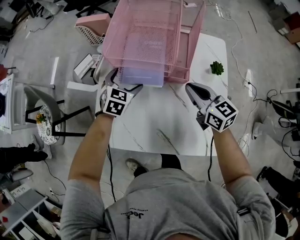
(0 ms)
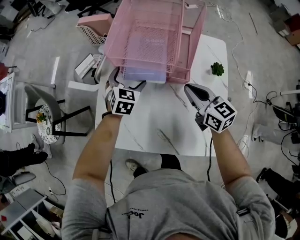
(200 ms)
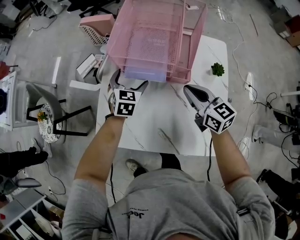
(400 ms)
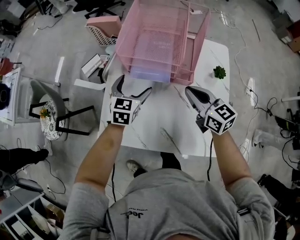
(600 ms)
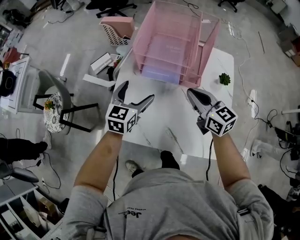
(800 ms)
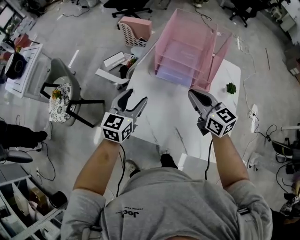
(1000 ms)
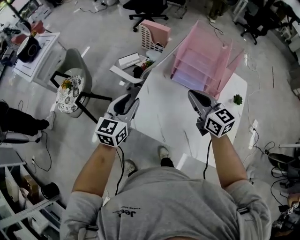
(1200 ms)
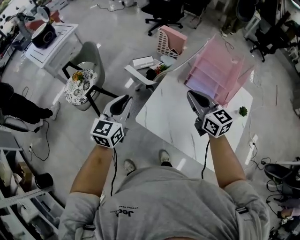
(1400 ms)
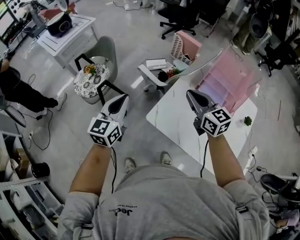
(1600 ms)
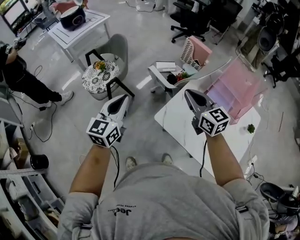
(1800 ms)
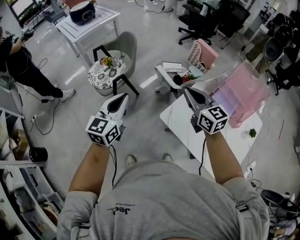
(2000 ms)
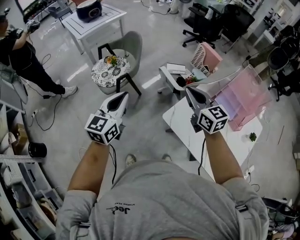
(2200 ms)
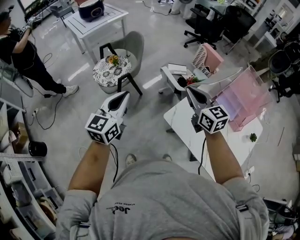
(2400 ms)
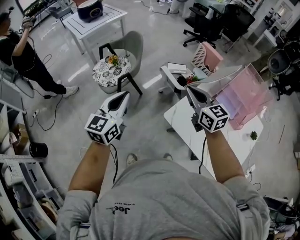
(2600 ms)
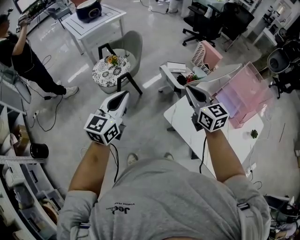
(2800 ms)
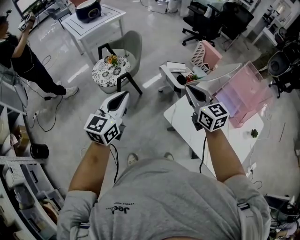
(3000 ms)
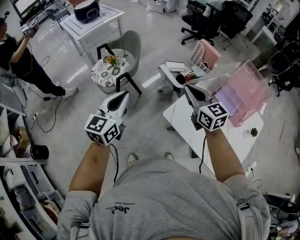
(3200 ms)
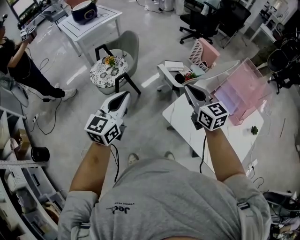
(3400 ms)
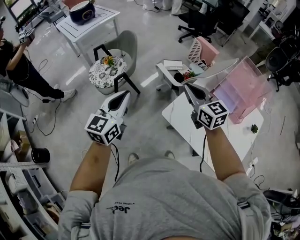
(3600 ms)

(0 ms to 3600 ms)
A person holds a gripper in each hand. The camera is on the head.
0 ms - 1800 ms: Both grippers are carried approximately 50 cm. The right gripper turns by some 30 degrees. Meanwhile the left gripper tips its fingers upward by about 30 degrees, and closes.
1800 ms - 3600 ms: The left gripper moves approximately 5 cm, while the right gripper goes some 5 cm to the left.

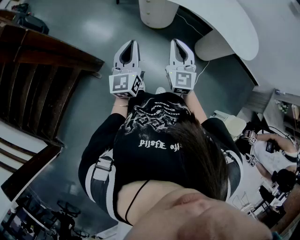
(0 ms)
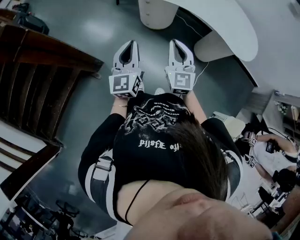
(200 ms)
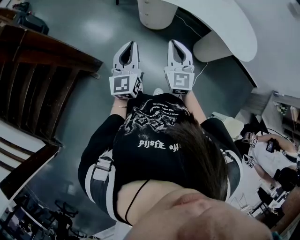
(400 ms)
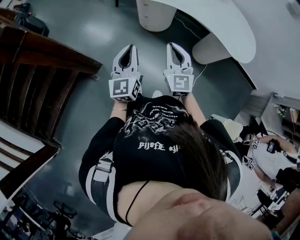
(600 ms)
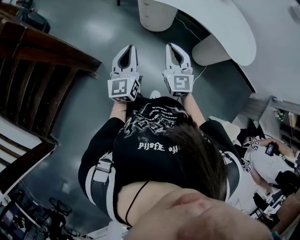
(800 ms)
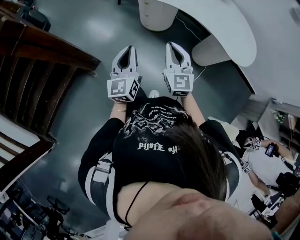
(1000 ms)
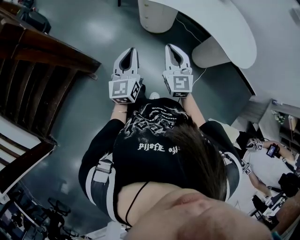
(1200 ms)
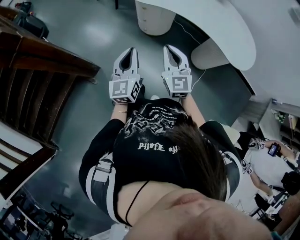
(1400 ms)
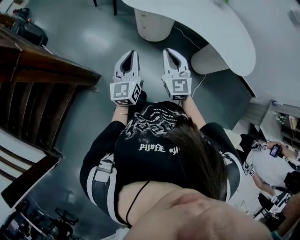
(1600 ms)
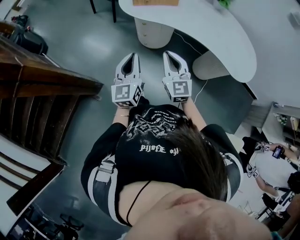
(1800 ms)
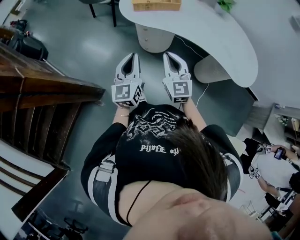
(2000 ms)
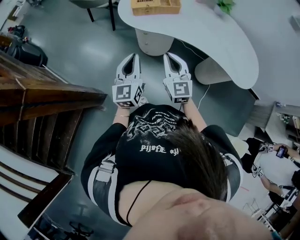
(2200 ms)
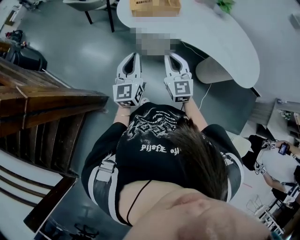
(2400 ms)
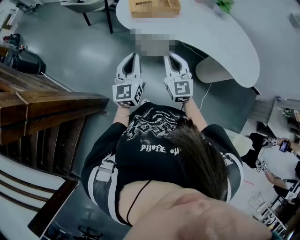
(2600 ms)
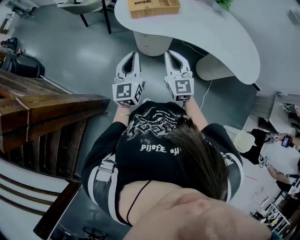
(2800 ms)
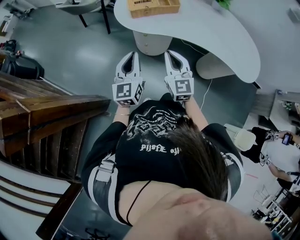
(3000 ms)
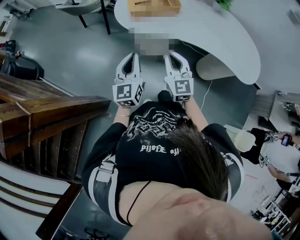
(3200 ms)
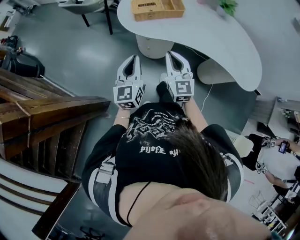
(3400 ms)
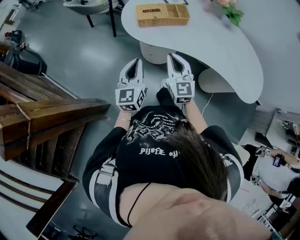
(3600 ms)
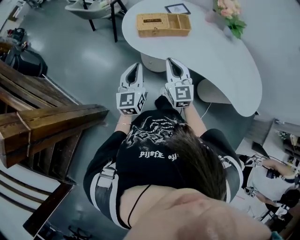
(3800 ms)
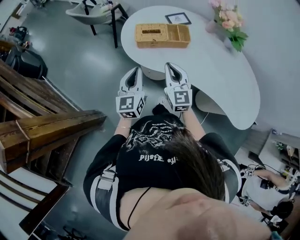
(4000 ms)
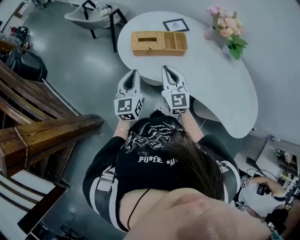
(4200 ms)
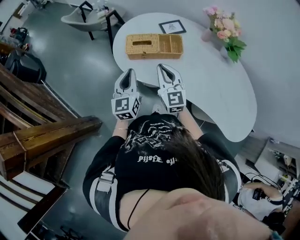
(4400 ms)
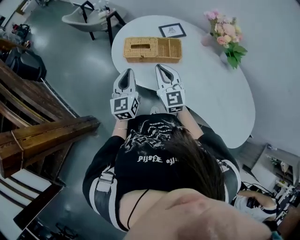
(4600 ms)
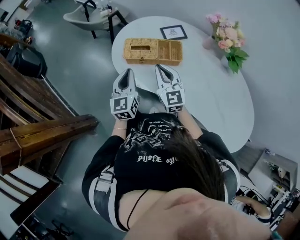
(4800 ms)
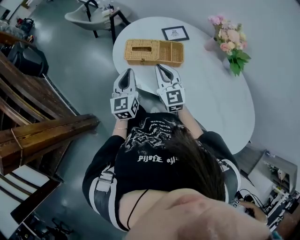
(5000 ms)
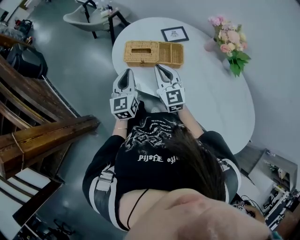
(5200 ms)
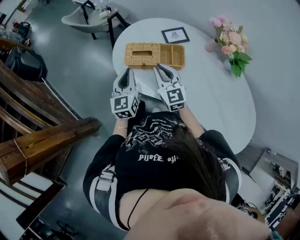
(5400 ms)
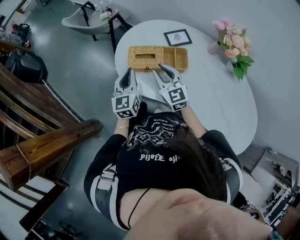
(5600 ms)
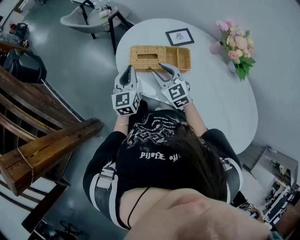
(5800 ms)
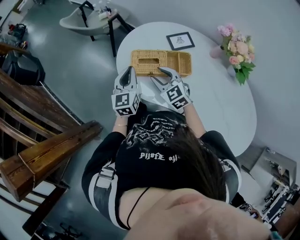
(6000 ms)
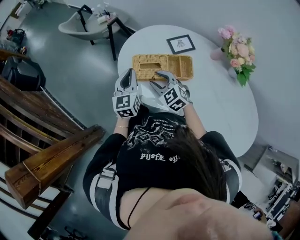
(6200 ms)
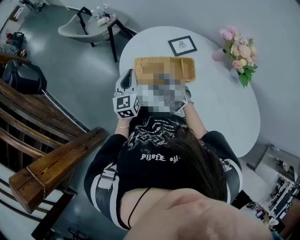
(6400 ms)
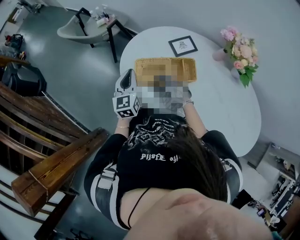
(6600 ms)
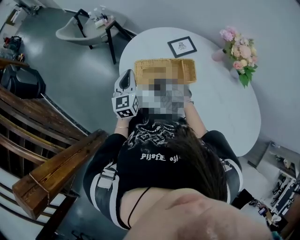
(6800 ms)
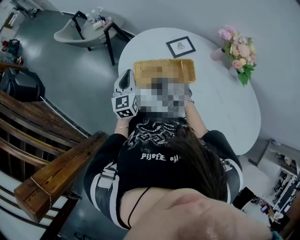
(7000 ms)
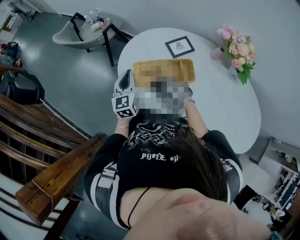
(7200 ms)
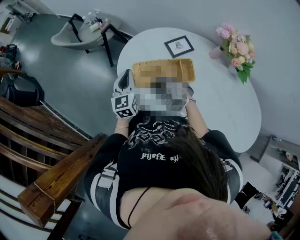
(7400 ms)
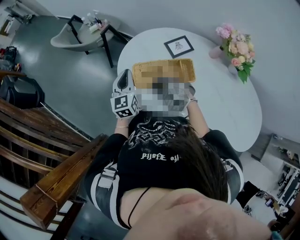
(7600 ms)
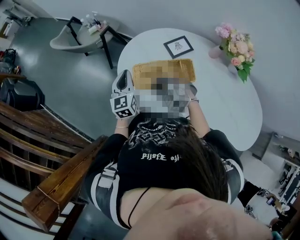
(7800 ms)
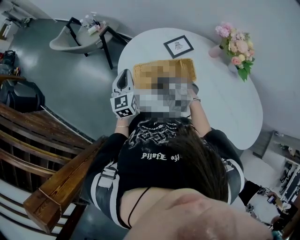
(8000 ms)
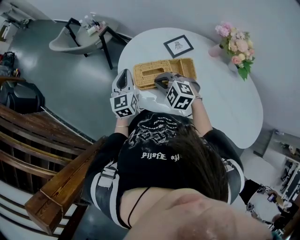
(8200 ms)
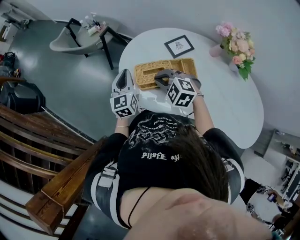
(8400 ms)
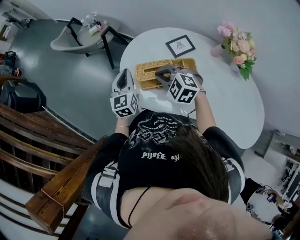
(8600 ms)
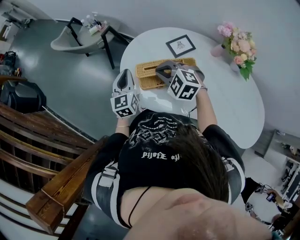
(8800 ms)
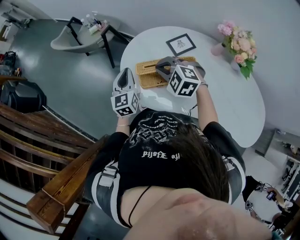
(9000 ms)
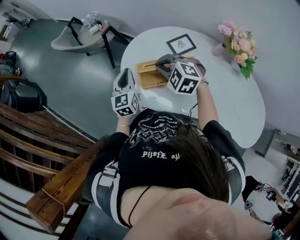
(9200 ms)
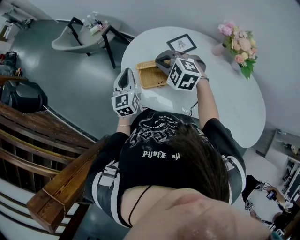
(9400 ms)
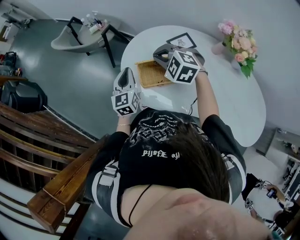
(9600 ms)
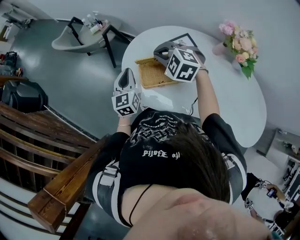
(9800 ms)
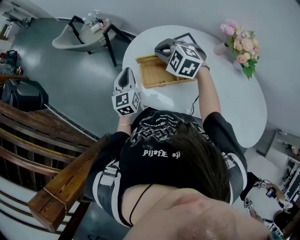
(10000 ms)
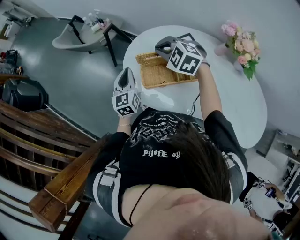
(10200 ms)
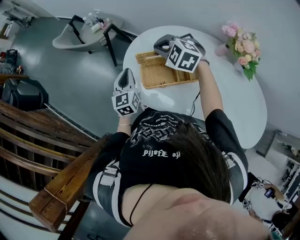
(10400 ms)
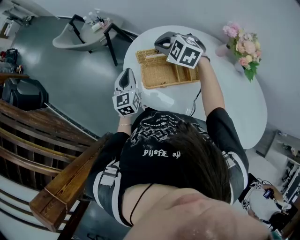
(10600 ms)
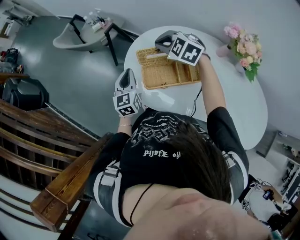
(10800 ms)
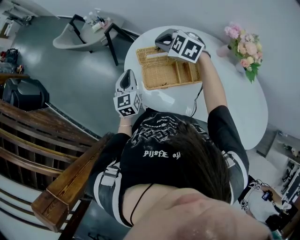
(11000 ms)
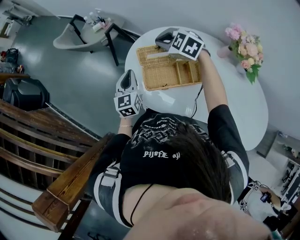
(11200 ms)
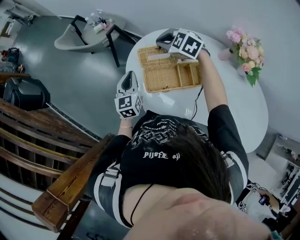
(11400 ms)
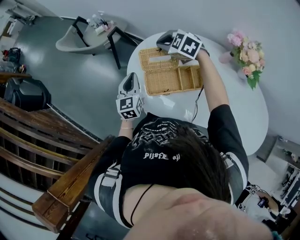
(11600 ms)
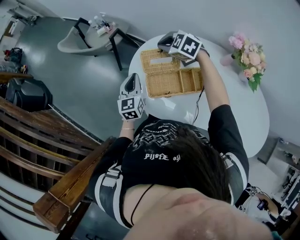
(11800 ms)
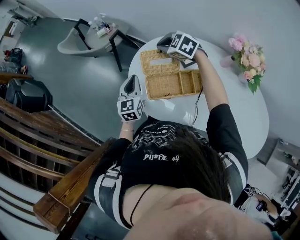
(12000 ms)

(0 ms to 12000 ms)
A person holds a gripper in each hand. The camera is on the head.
0 ms - 1600 ms: The grippers both shift forward by some 10 cm.
1600 ms - 3000 ms: Both grippers travel together forward and to the left, approximately 20 cm.
3000 ms - 4400 ms: Both grippers move forward, some 25 cm.
4400 ms - 6000 ms: The right gripper moves forward and downward, some 15 cm, changes its angle by some 30 degrees, and opens. Meanwhile the left gripper is displaced forward by about 15 cm.
6000 ms - 7600 ms: The left gripper travels forward by some 10 cm. Meanwhile the right gripper shifts by roughly 5 cm, turns by some 30 degrees, and closes up.
7600 ms - 9000 ms: The right gripper moves upward and forward, roughly 10 cm.
9000 ms - 10400 ms: The right gripper shifts about 10 cm forward.
10400 ms - 12000 ms: The right gripper travels forward by approximately 10 cm.

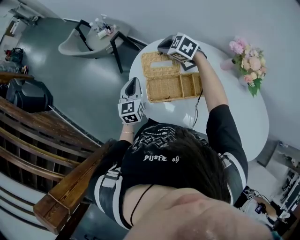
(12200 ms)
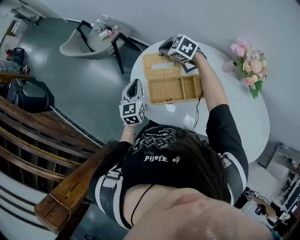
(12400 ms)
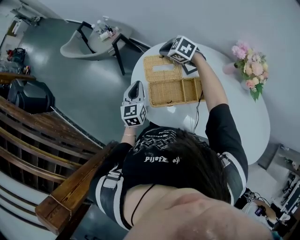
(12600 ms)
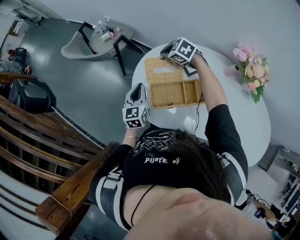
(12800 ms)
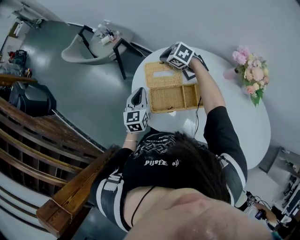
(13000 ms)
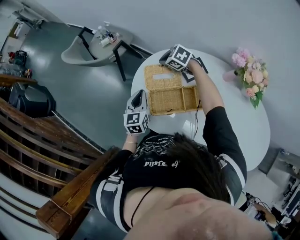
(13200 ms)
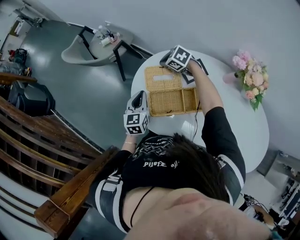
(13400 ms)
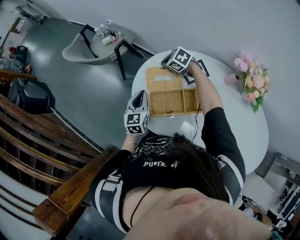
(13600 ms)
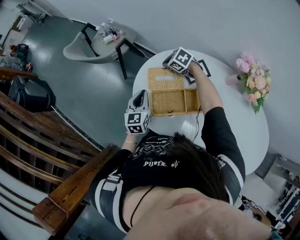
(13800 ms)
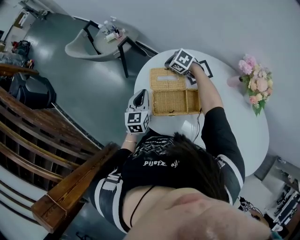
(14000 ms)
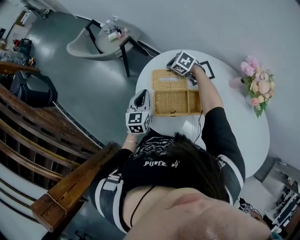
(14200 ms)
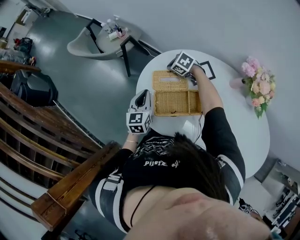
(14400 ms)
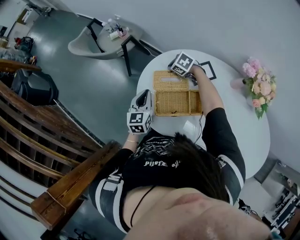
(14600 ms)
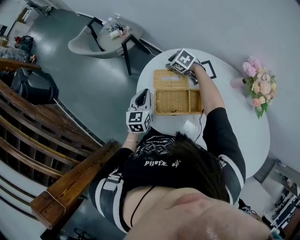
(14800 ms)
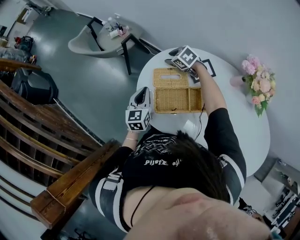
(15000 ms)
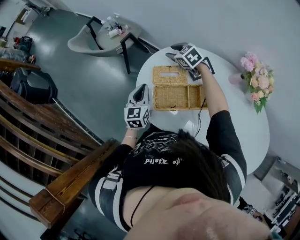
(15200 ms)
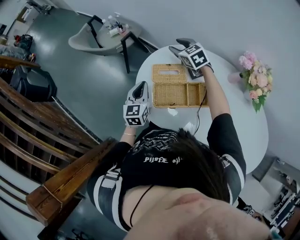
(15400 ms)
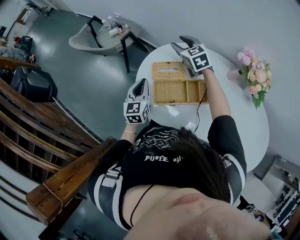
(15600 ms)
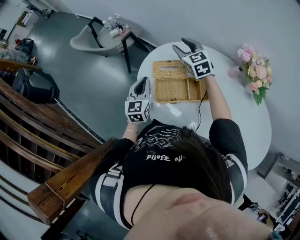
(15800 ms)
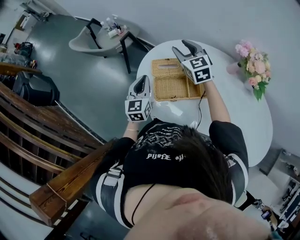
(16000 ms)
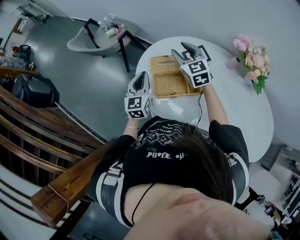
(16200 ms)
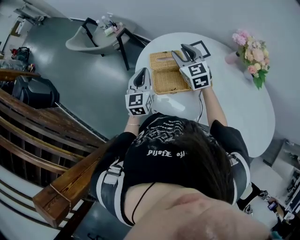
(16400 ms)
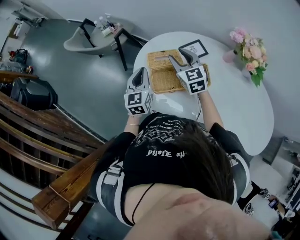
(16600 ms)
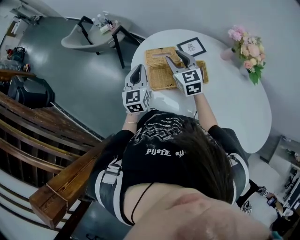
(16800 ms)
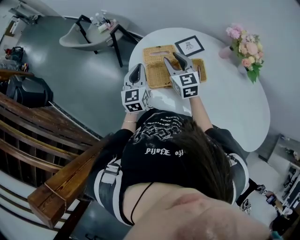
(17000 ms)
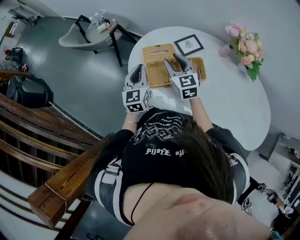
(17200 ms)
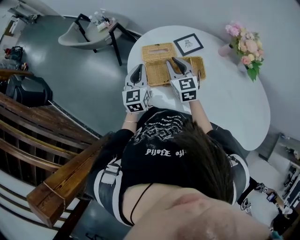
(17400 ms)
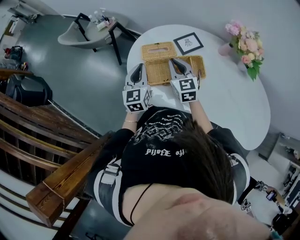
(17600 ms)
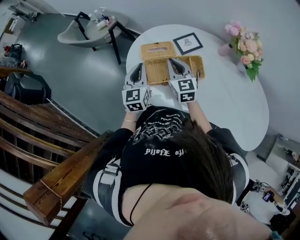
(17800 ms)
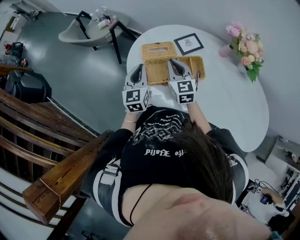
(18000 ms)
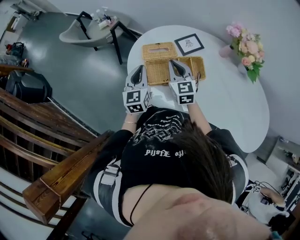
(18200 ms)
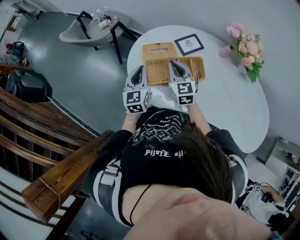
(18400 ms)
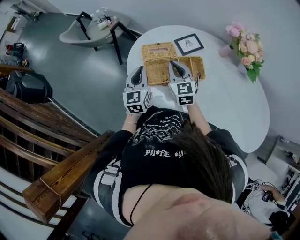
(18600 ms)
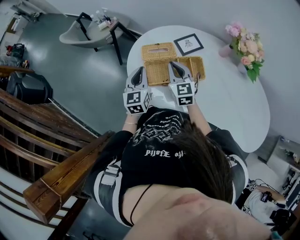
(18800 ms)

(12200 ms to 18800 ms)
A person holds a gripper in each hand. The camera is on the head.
12200 ms - 13800 ms: The right gripper travels downward by approximately 10 cm.
13800 ms - 15400 ms: The right gripper shifts about 10 cm upward, rotates about 30 degrees, and opens its fingers.
15400 ms - 17200 ms: The right gripper travels backward by roughly 20 cm, and rotates some 30 degrees; the left gripper shifts by about 5 cm.
17200 ms - 18800 ms: The right gripper closes.

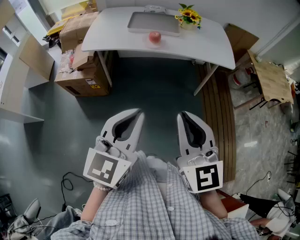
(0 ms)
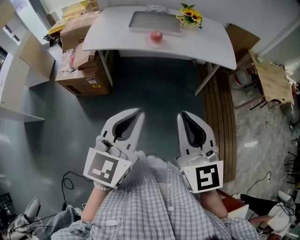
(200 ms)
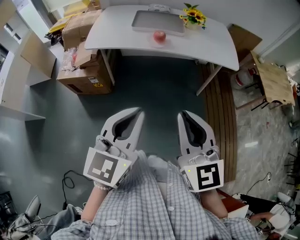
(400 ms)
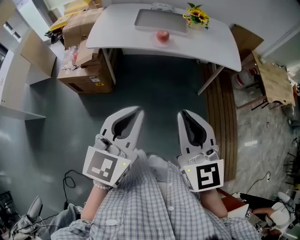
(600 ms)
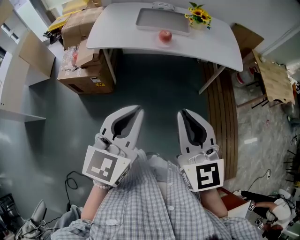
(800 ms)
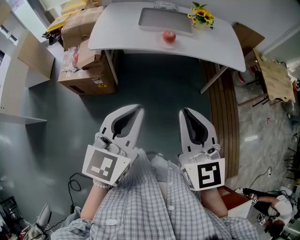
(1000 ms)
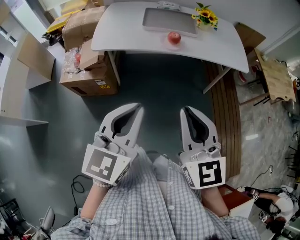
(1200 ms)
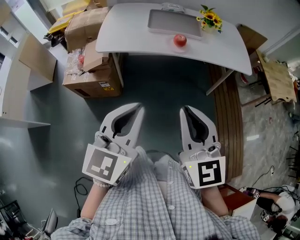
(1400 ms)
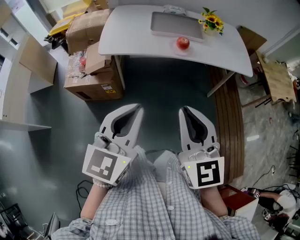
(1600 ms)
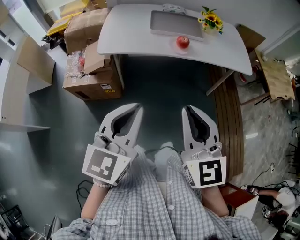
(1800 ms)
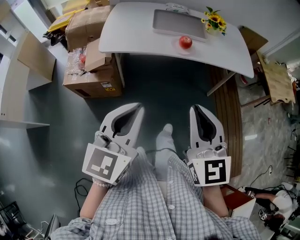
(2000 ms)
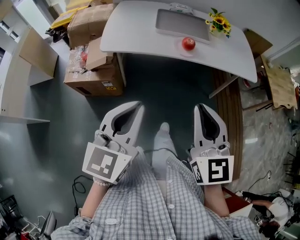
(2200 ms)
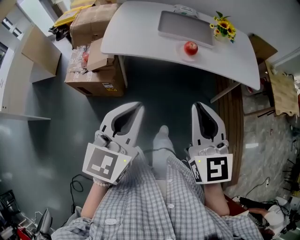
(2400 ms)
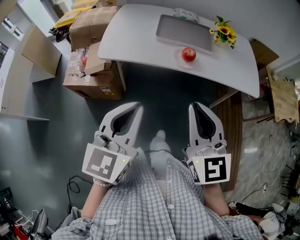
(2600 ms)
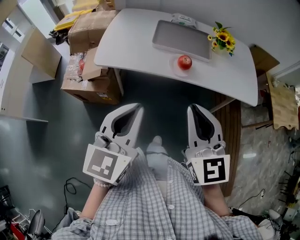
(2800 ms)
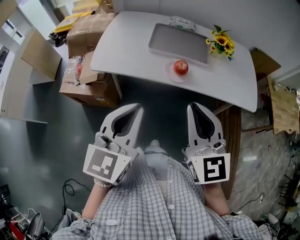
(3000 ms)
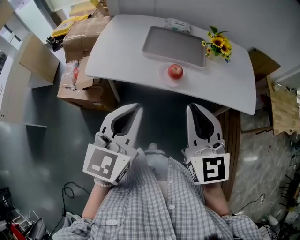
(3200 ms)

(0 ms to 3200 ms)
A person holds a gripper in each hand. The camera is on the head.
0 ms - 1600 ms: The two grippers go approximately 20 cm to the left and forward.
1600 ms - 3200 ms: Both grippers travel together forward and to the right, some 25 cm.
